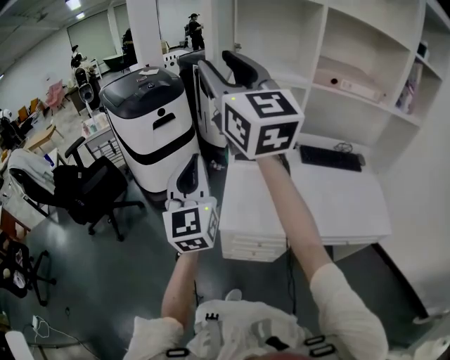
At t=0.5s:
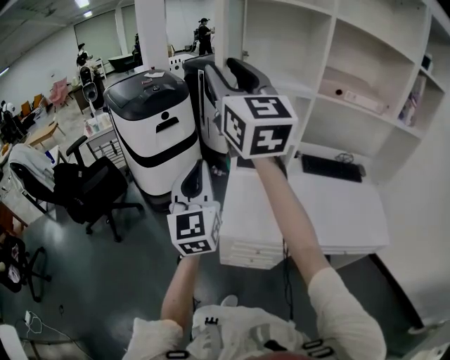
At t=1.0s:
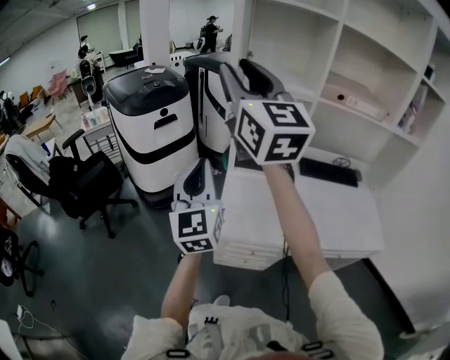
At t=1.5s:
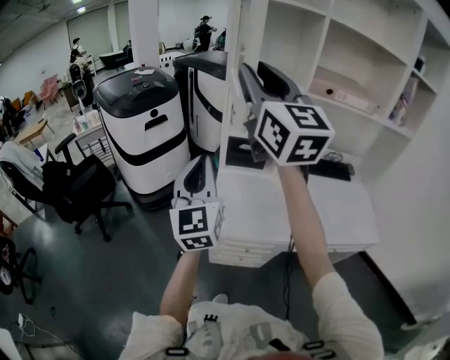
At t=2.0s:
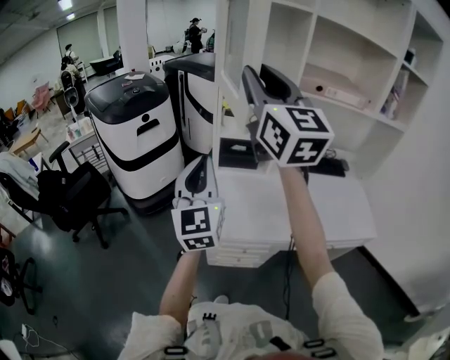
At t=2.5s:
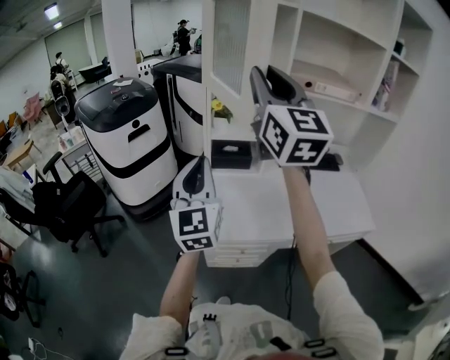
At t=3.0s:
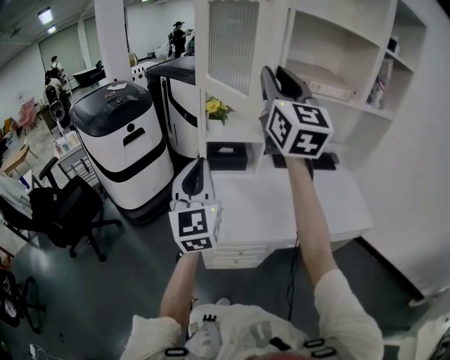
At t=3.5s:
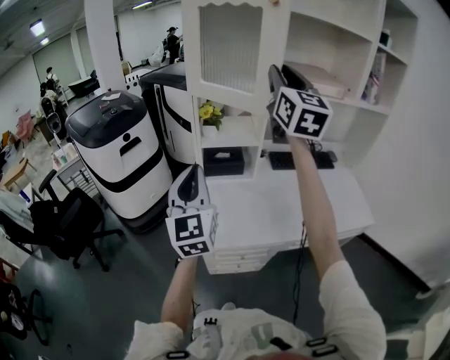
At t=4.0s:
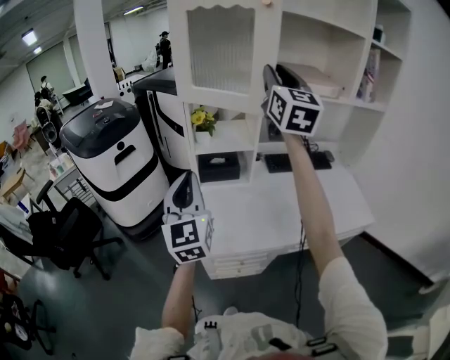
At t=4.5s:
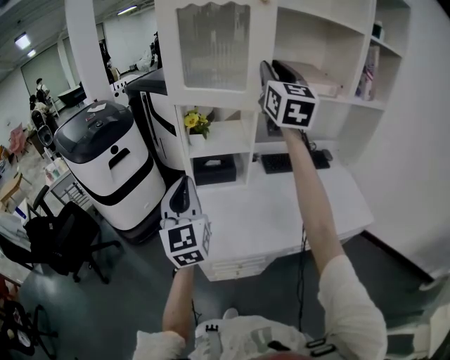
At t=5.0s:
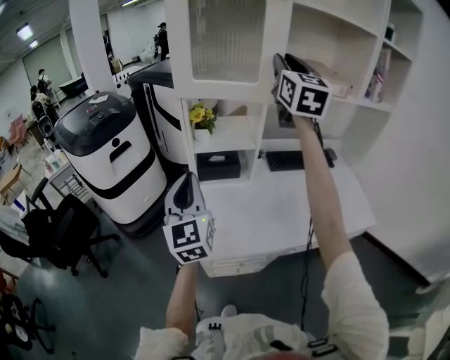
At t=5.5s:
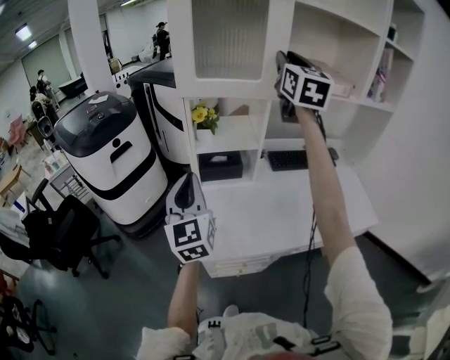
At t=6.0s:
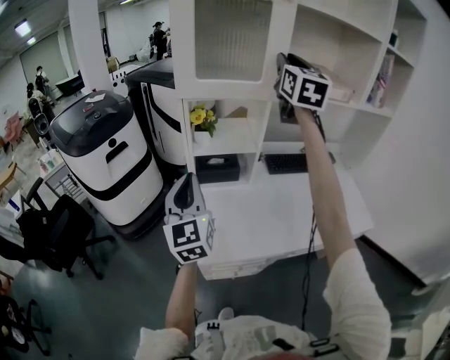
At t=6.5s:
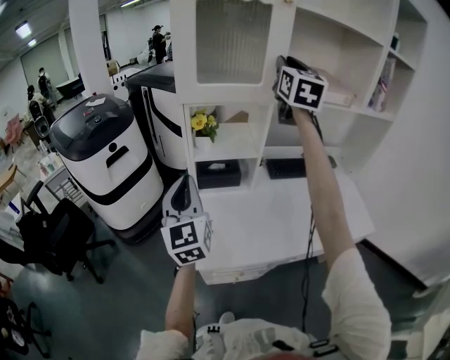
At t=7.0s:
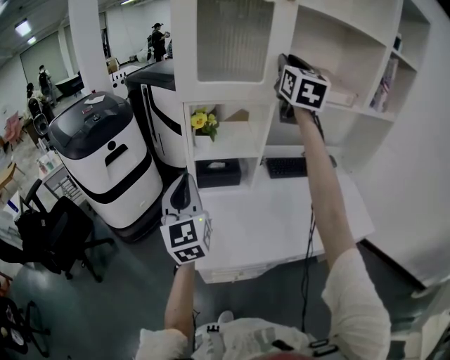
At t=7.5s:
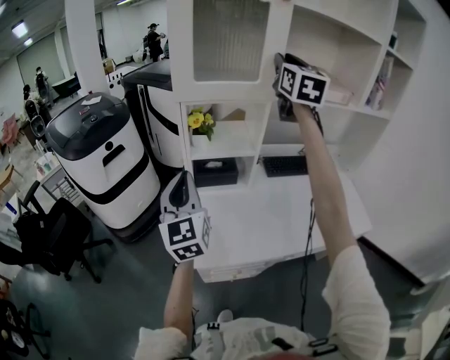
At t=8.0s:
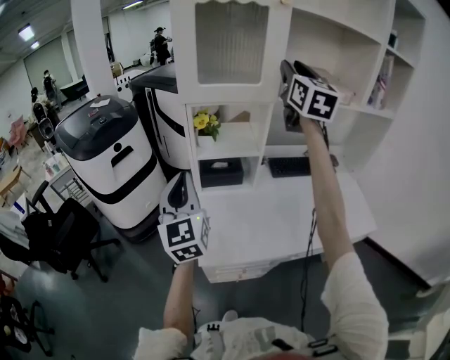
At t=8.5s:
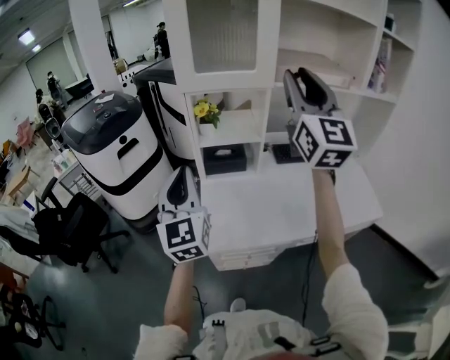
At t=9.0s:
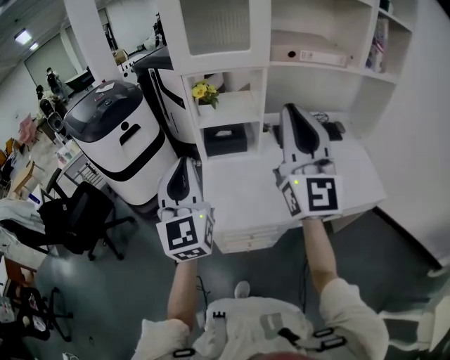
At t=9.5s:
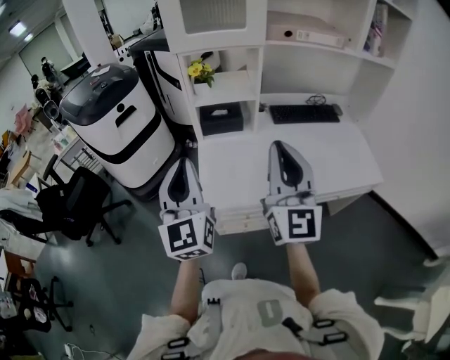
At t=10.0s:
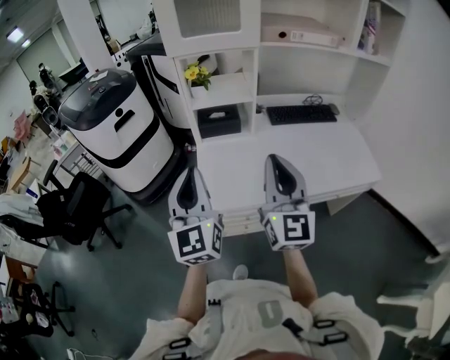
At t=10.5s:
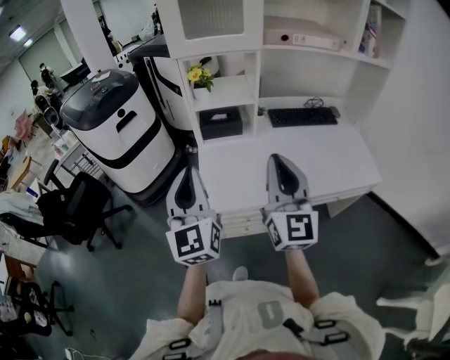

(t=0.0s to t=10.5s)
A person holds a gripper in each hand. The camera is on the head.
t=0.0s - t=2.0s: The left gripper heads to the right, covering roughly 5 cm. Meanwhile the right gripper goes some 10 cm to the right.
t=2.0s - t=4.0s: The right gripper shifts about 20 cm to the right and forward, and turns by roughly 20 degrees. Meanwhile the left gripper changes place by roughly 5 cm.
t=4.0s - t=6.5s: The right gripper shifts some 10 cm forward; the left gripper shifts about 5 cm forward.
t=6.5s - t=8.5s: The left gripper heads backward, covering some 5 cm. Meanwhile the right gripper heads backward, covering roughly 20 cm.
t=8.5s - t=10.5s: The right gripper is displaced downward and backward by approximately 30 cm, and closes up. Meanwhile the left gripper heads backward, covering approximately 10 cm.

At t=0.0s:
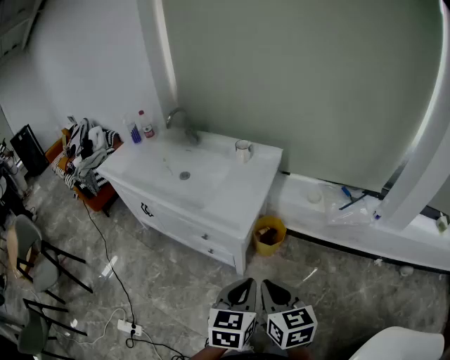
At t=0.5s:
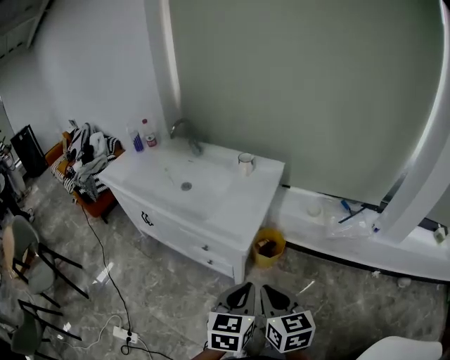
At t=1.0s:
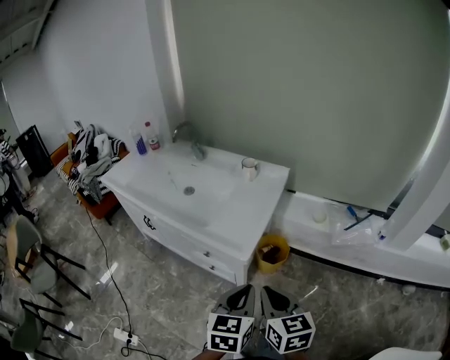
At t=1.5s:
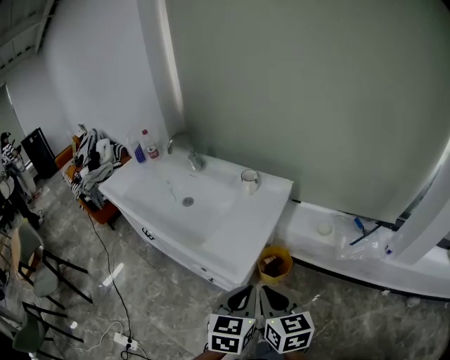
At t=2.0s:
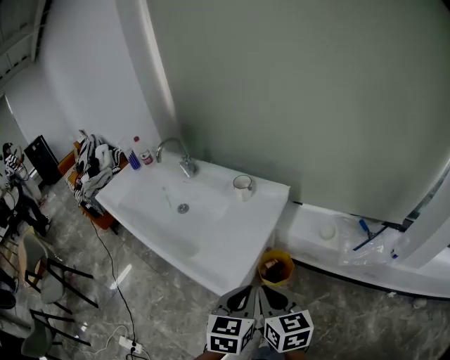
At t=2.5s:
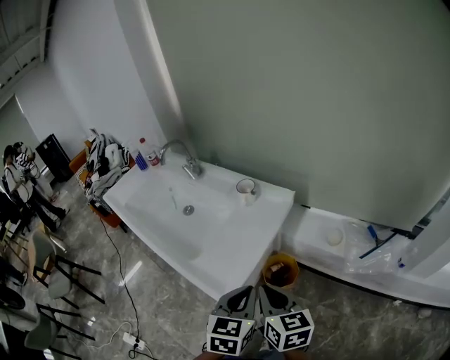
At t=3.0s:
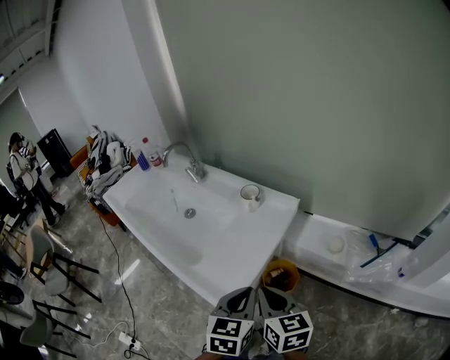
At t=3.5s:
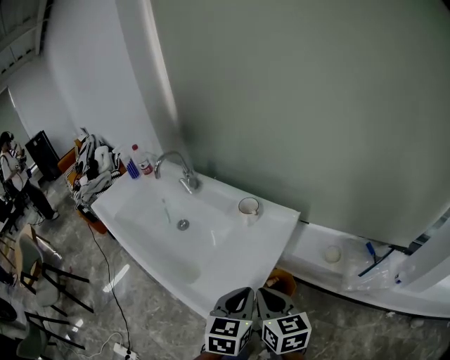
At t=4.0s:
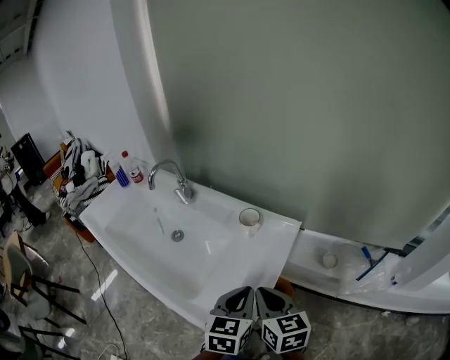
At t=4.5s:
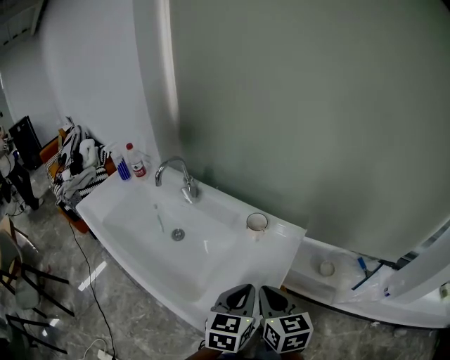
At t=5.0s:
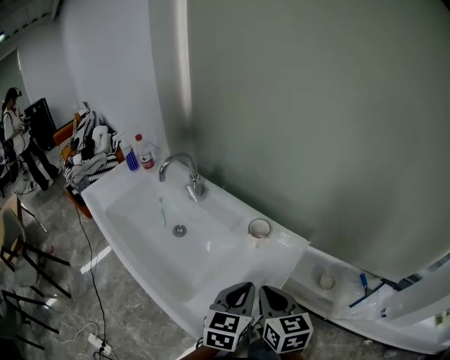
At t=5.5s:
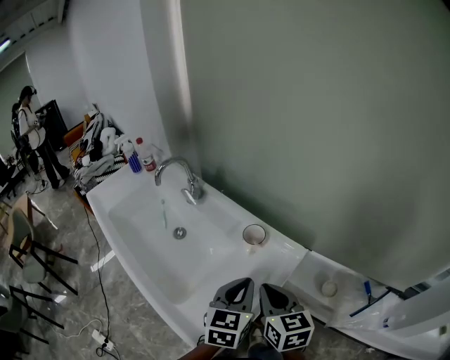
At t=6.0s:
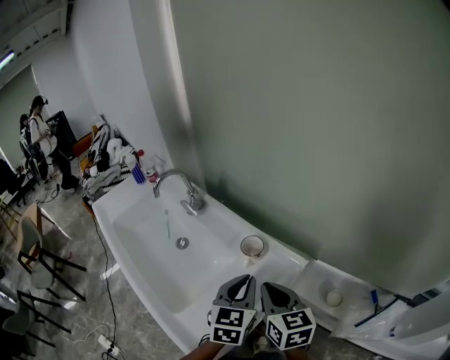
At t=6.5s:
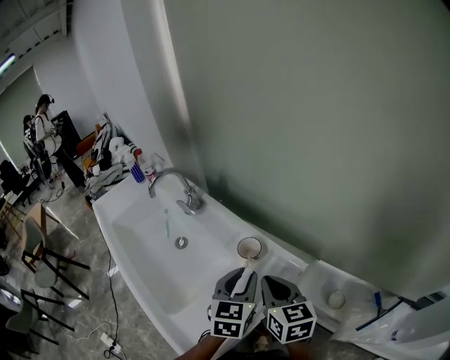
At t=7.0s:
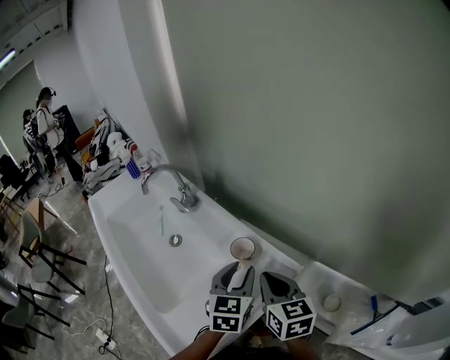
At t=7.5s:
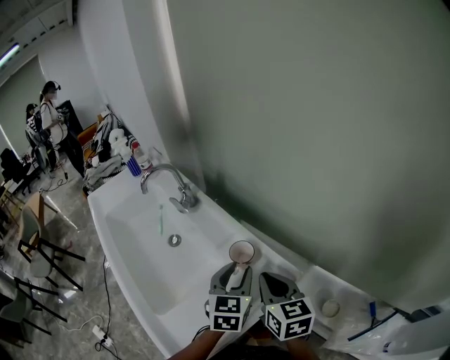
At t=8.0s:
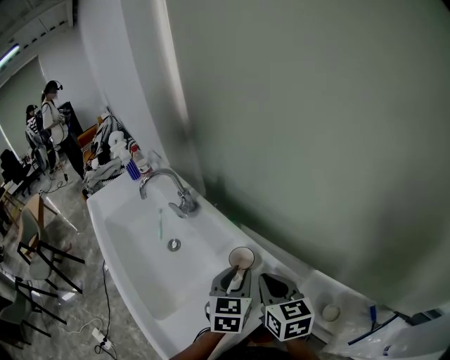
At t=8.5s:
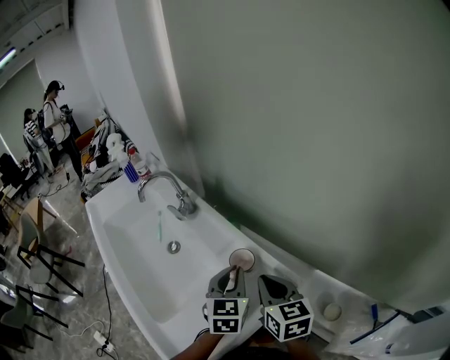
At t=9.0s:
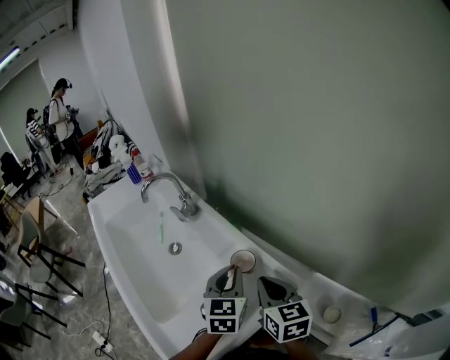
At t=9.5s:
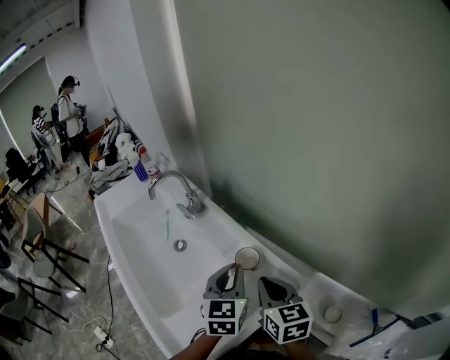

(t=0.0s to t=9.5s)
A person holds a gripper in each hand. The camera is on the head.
t=0.0s - t=2.0s: Both grippers move forward, roughly 20 cm.
t=2.0s - t=4.0s: Both grippers move forward, some 15 cm.
t=4.0s - t=5.5s: The two grippers go about 10 cm forward.
t=5.5s - t=7.5s: The right gripper shifts some 10 cm forward and to the right. The left gripper heads forward, covering some 10 cm, and opens up.
t=7.5s - t=9.5s: The left gripper shifts by about 5 cm, and closes.

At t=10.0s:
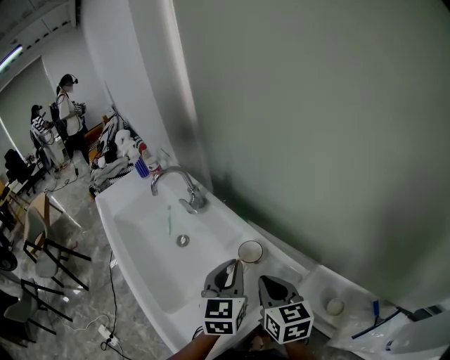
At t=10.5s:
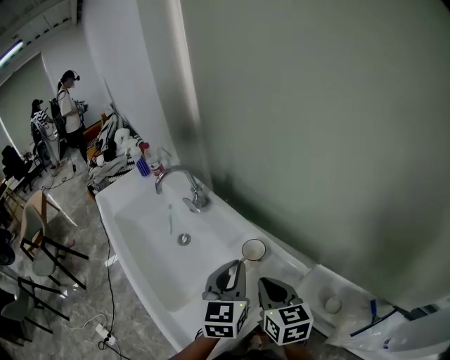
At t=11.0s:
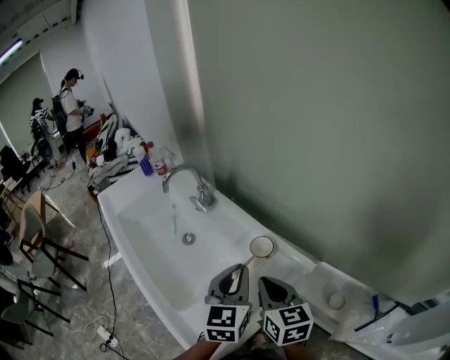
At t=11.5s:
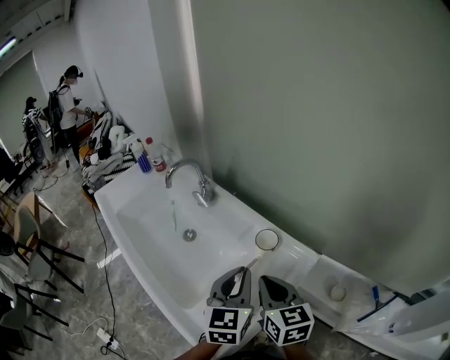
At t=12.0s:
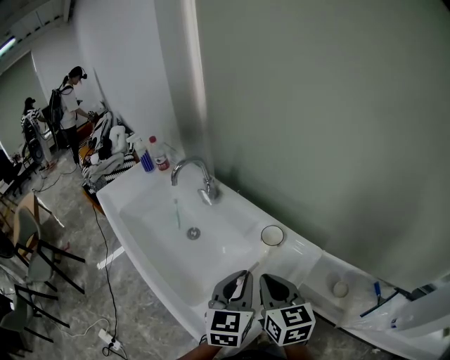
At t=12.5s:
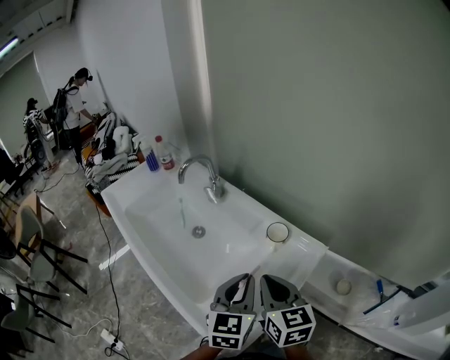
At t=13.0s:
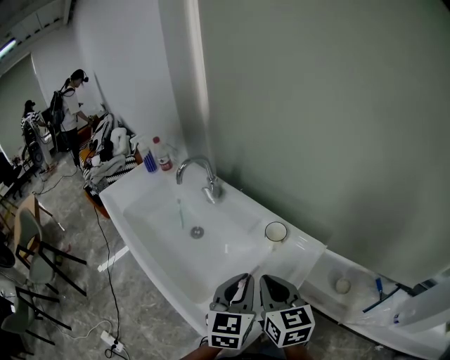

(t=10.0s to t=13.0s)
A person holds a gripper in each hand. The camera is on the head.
t=10.0s - t=11.5s: The right gripper heads to the left, covering roughly 5 cm. The left gripper moves backward and to the left, roughly 10 cm.
t=11.5s - t=13.0s: The right gripper shifts by about 5 cm. The left gripper ends up some 5 cm from where it was.

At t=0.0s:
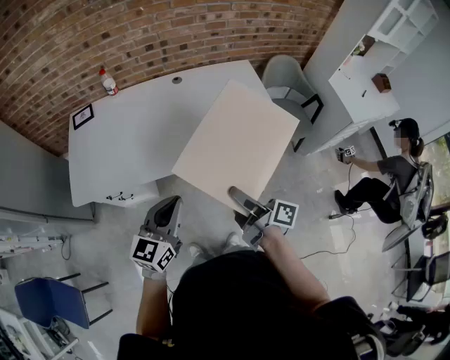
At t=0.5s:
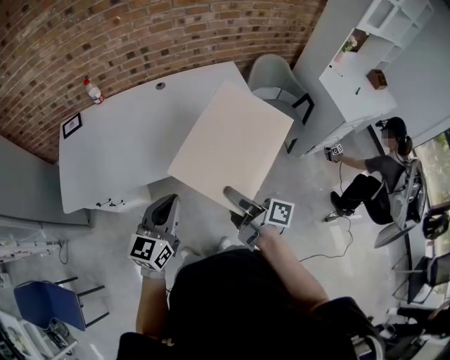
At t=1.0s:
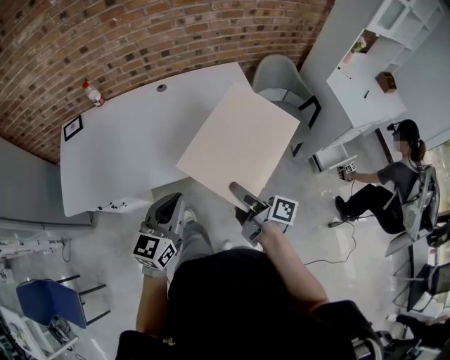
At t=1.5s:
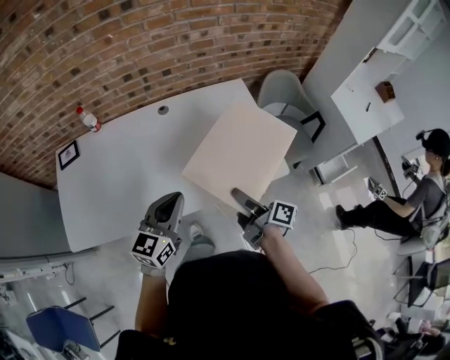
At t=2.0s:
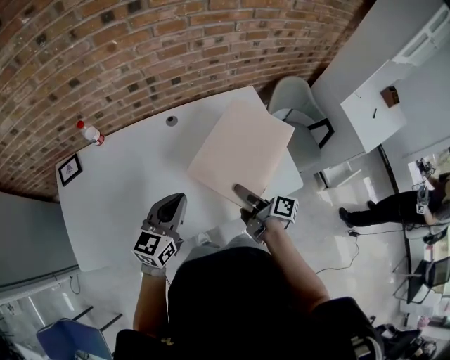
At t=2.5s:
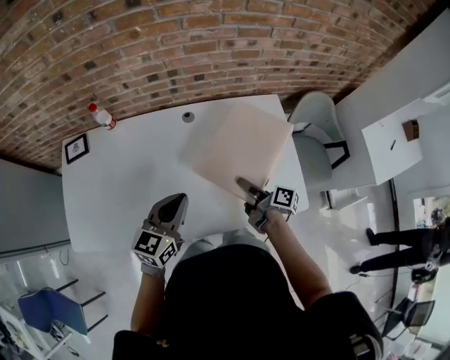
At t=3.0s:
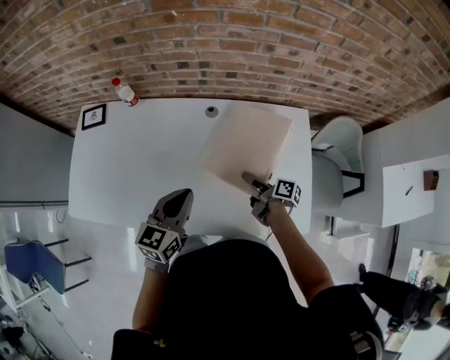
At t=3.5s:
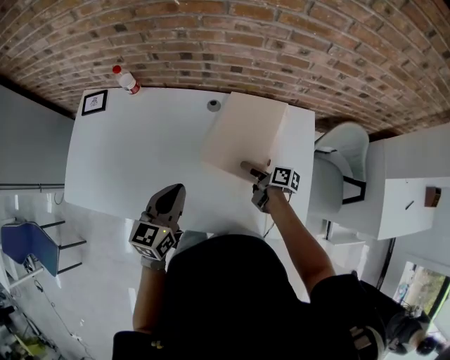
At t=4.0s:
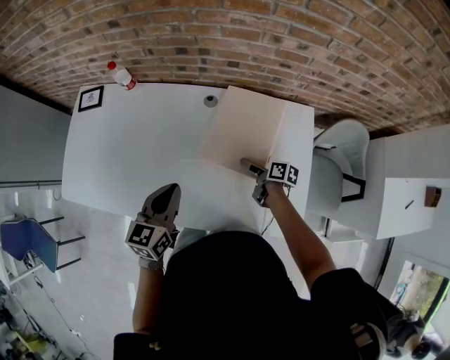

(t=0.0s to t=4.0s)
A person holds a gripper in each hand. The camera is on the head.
t=0.0s - t=2.0s: The grippers both shift forward by some 30 cm.
t=2.0s - t=4.0s: The right gripper moves roughly 25 cm, and changes its angle by approximately 40 degrees. The left gripper ends up approximately 10 cm from where it was, and rotates roughly 40 degrees.
